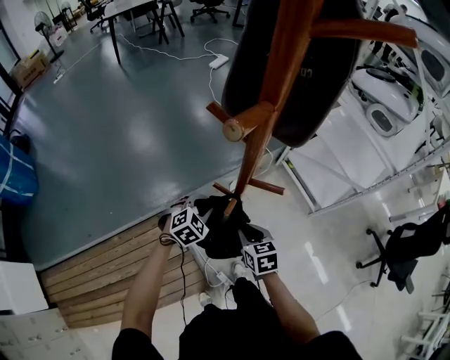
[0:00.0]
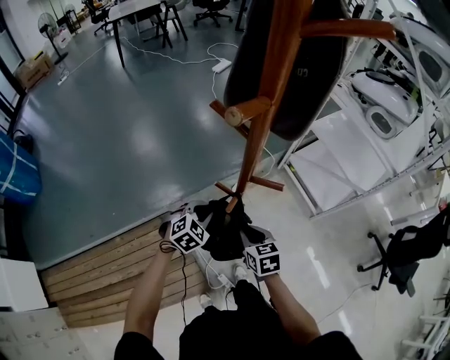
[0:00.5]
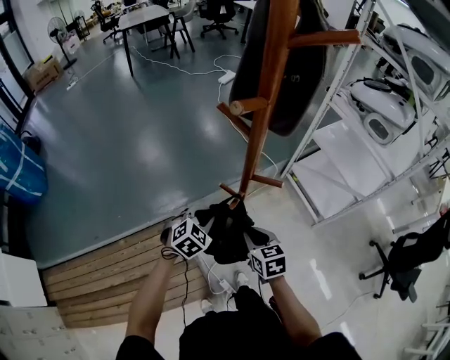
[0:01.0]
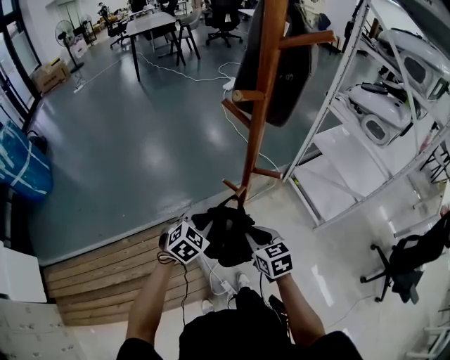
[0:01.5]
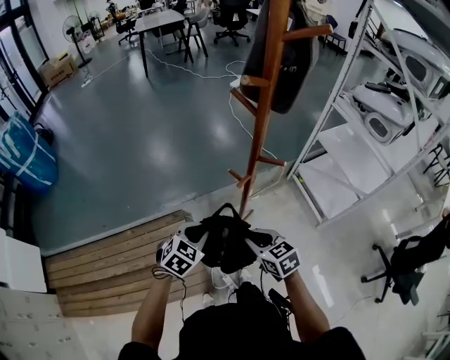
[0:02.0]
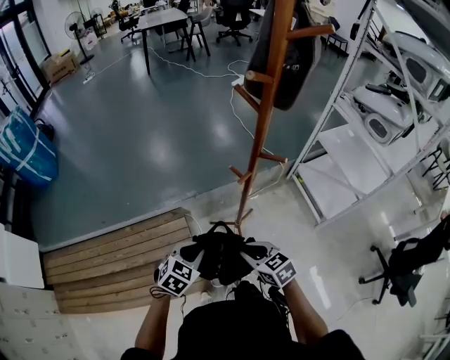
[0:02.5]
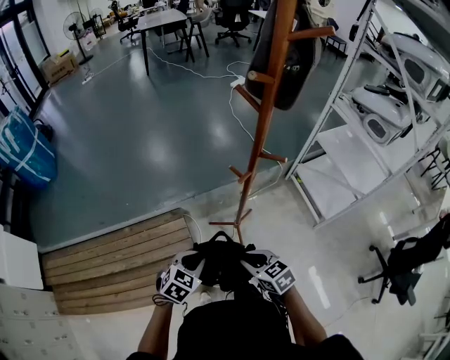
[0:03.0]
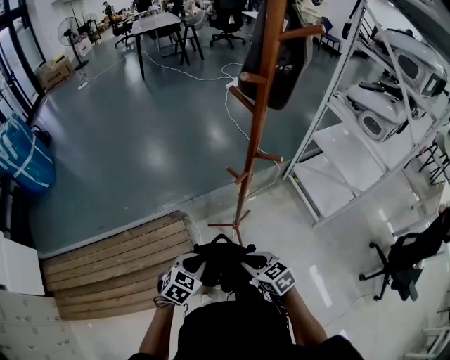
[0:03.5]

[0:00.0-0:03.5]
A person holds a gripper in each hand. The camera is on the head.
0:00.0 to 0:02.0: Both grippers travel together backward and upward, about 20 cm. The right gripper swivels about 30 degrees; the left gripper changes its angle by roughly 20 degrees.
0:02.0 to 0:03.5: Both grippers travel together backward, roughly 10 cm.

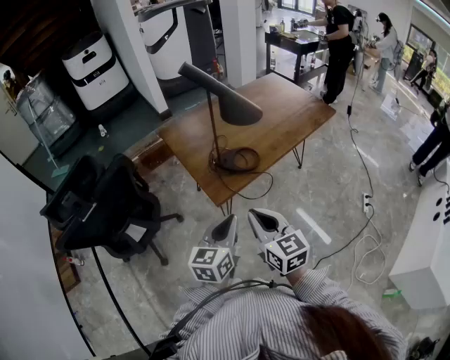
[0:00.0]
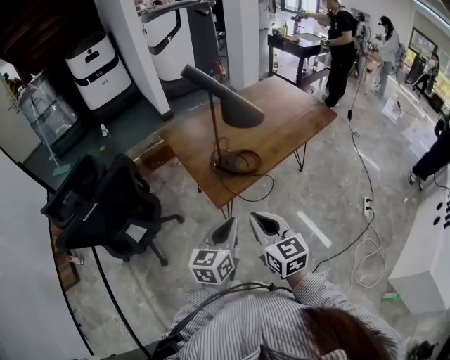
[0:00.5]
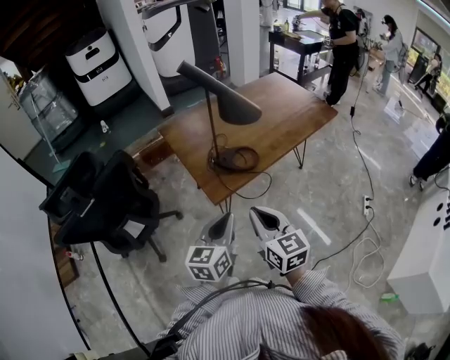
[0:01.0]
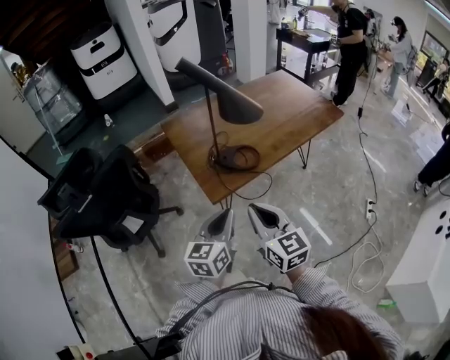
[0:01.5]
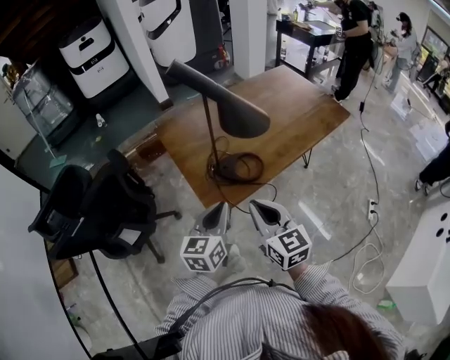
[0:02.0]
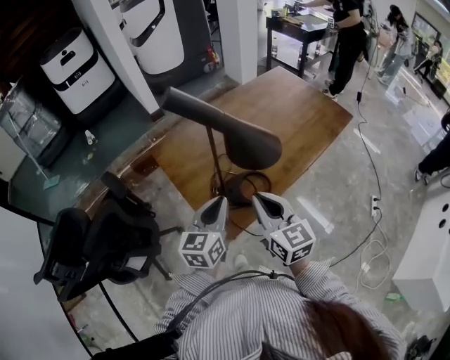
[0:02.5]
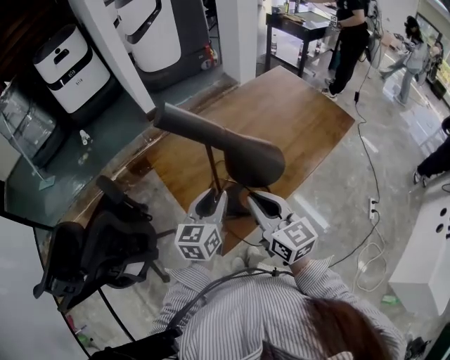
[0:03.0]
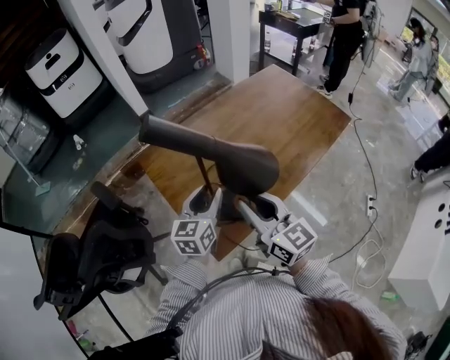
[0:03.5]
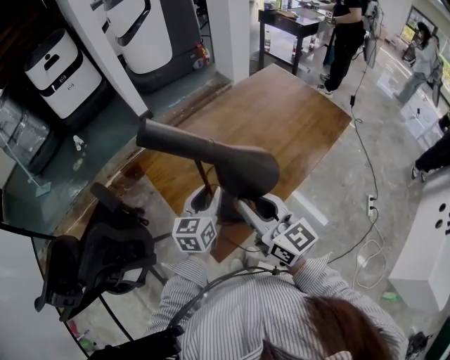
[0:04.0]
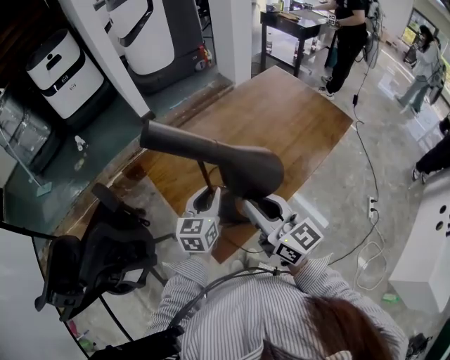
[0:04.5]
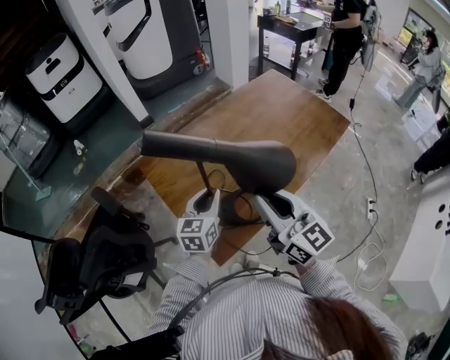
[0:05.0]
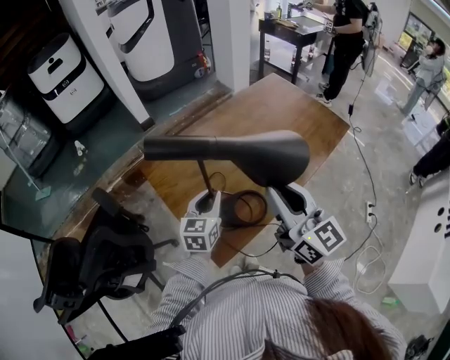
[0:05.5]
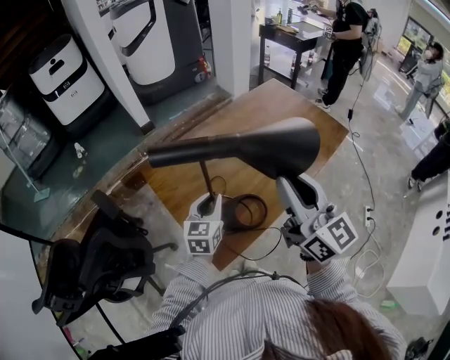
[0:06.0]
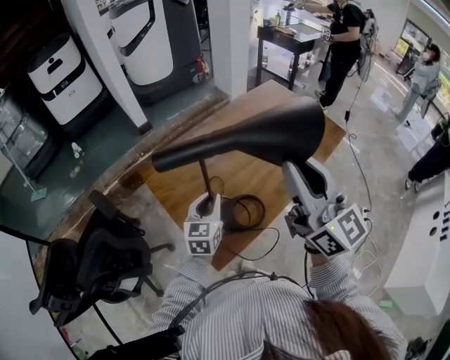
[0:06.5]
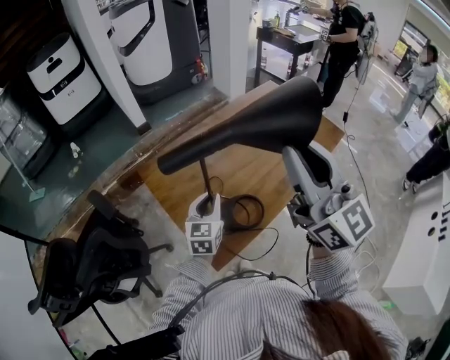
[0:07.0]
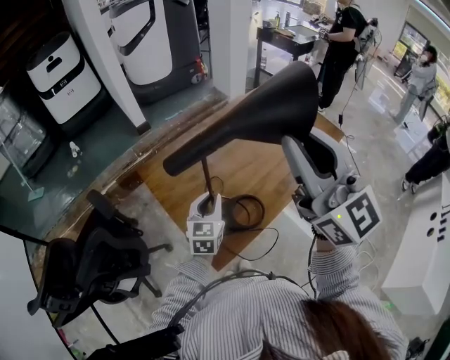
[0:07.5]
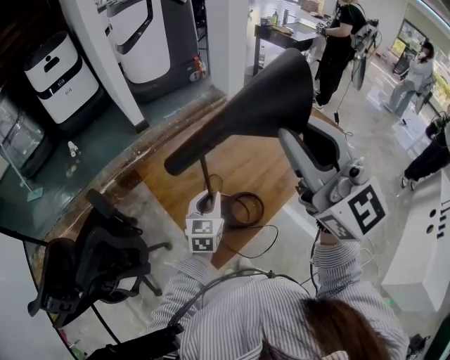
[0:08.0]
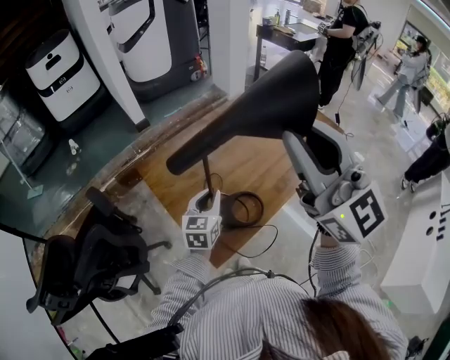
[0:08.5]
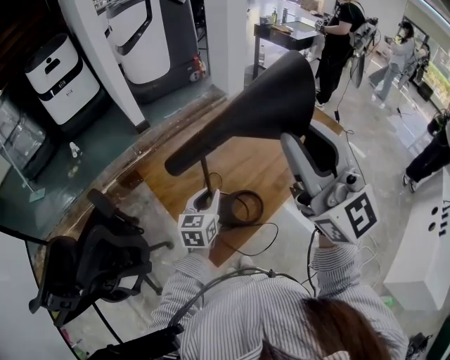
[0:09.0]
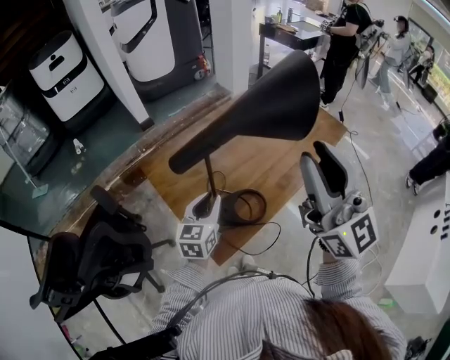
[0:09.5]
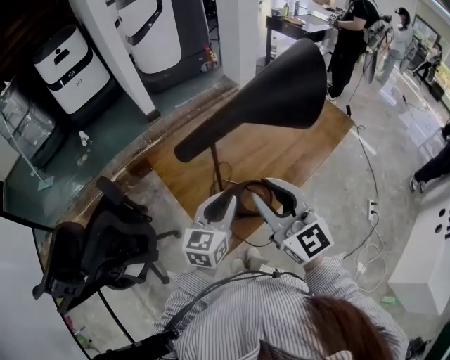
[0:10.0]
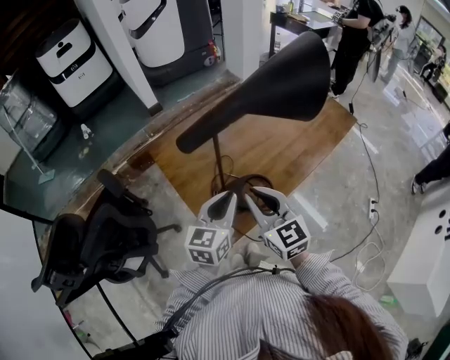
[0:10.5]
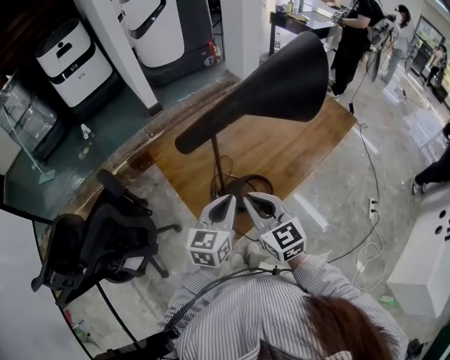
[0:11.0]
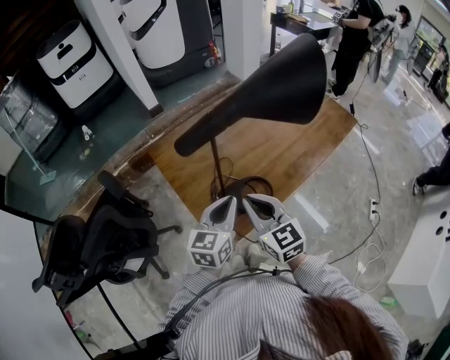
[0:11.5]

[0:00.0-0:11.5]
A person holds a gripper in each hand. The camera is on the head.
0:00.0 to 0:02.0: Both grippers move forward, roughly 10 cm.
0:02.0 to 0:04.0: The grippers both shift forward by some 20 cm. The left gripper opens its fingers.
0:04.0 to 0:06.0: The right gripper moves upward and to the right, some 15 cm.
0:06.0 to 0:07.5: The right gripper travels upward by approximately 10 cm, and rotates about 20 degrees.
0:07.5 to 0:09.5: The right gripper moves approximately 5 cm.
0:09.5 to 0:11.5: The right gripper moves downward and to the left, roughly 30 cm, points its fingers about 40 degrees further downward, and closes its fingers. Meanwhile the left gripper heads backward, covering roughly 5 cm, and closes.

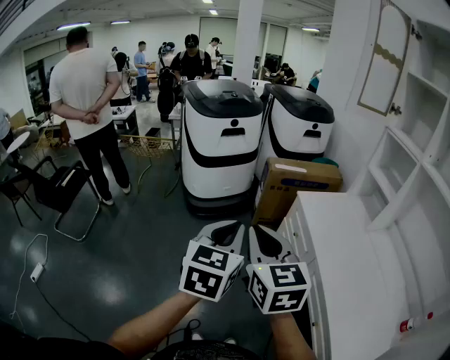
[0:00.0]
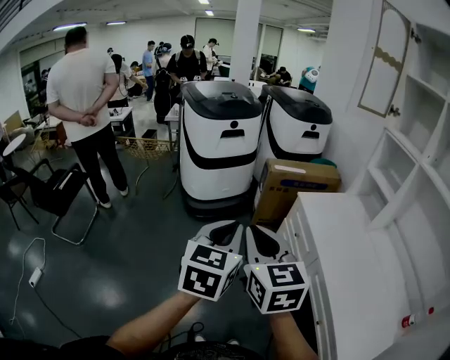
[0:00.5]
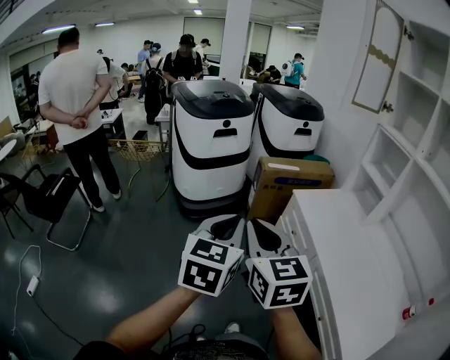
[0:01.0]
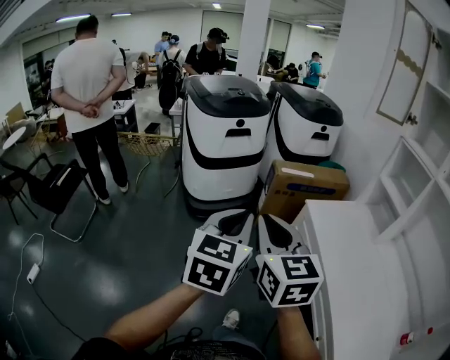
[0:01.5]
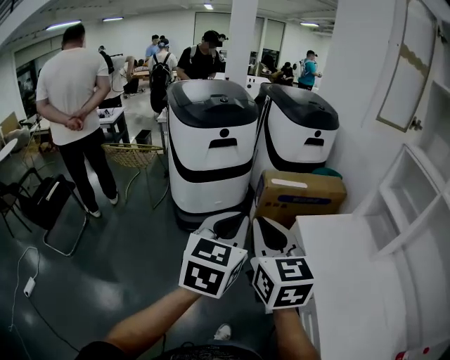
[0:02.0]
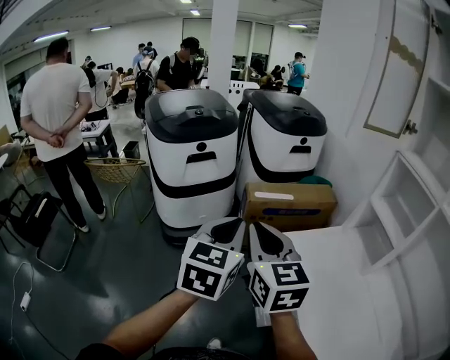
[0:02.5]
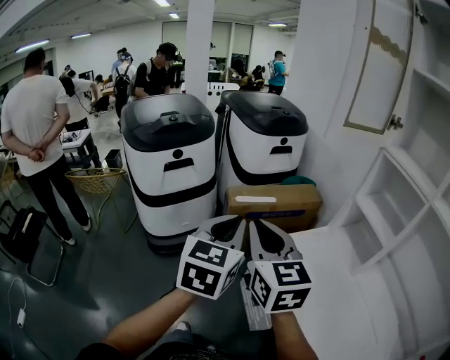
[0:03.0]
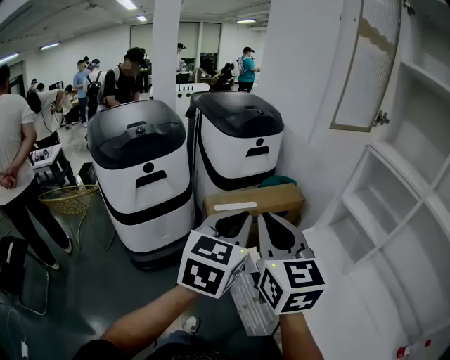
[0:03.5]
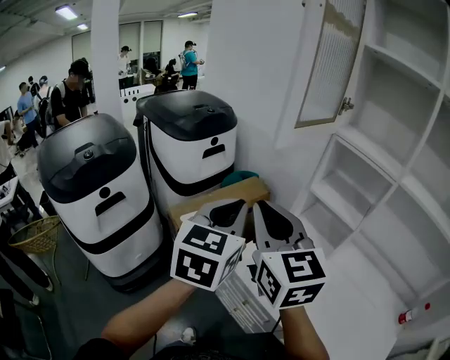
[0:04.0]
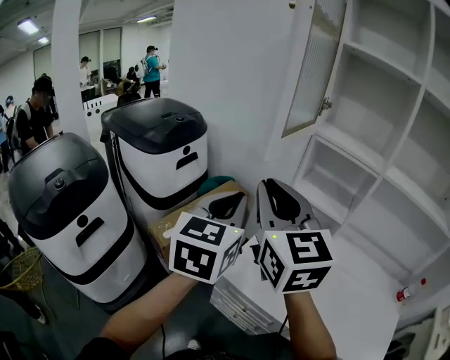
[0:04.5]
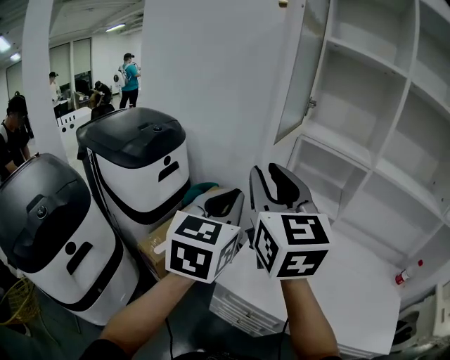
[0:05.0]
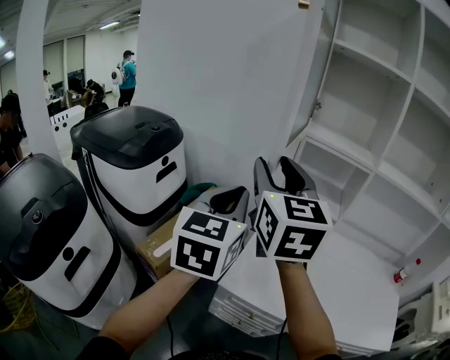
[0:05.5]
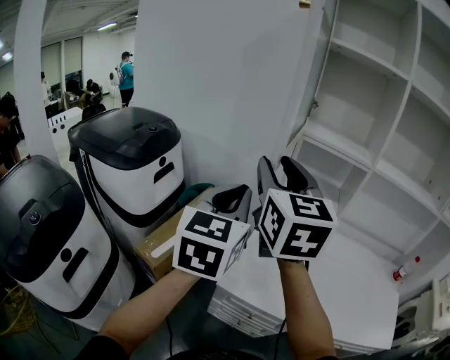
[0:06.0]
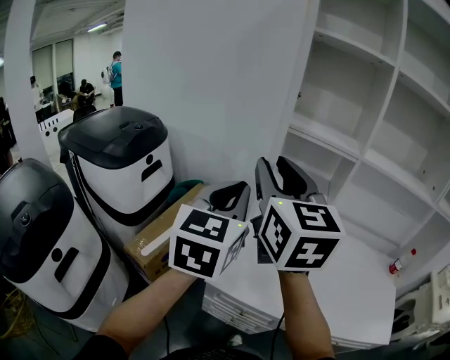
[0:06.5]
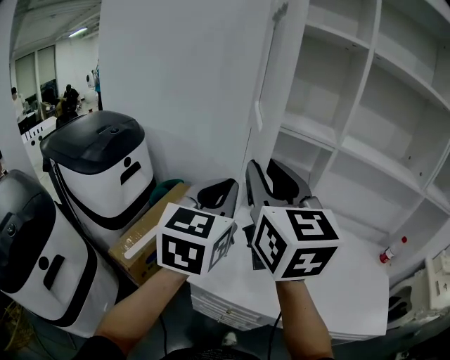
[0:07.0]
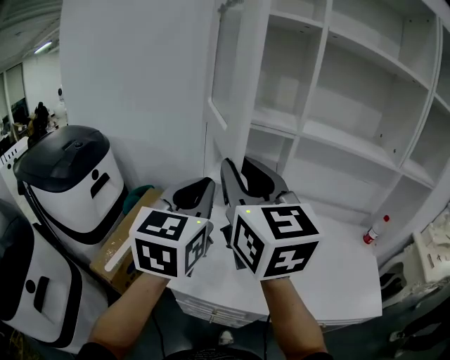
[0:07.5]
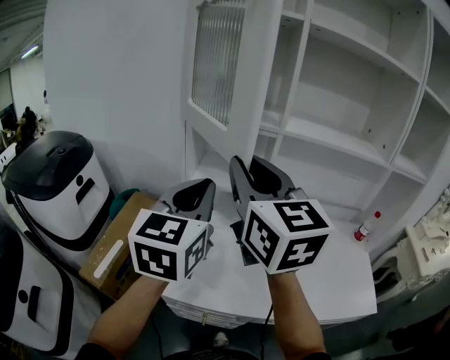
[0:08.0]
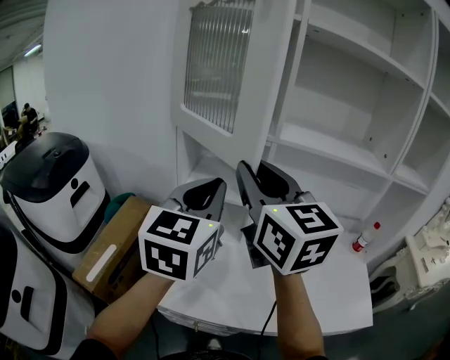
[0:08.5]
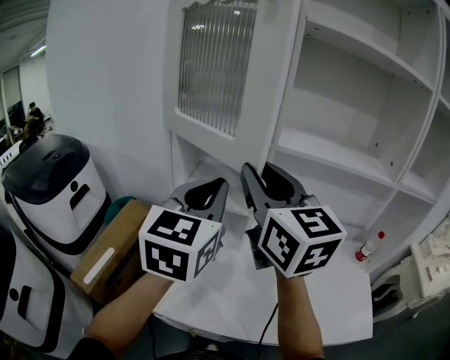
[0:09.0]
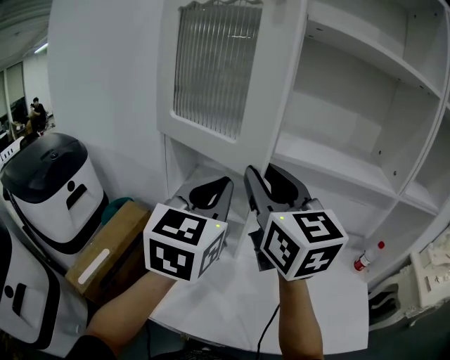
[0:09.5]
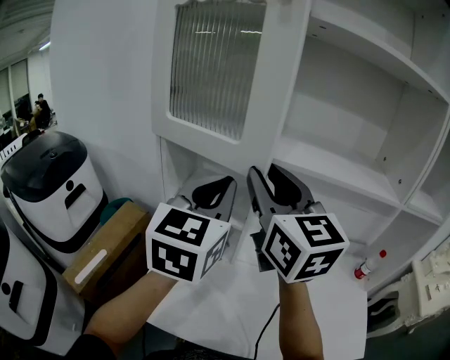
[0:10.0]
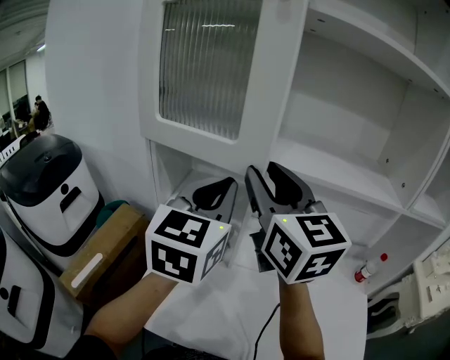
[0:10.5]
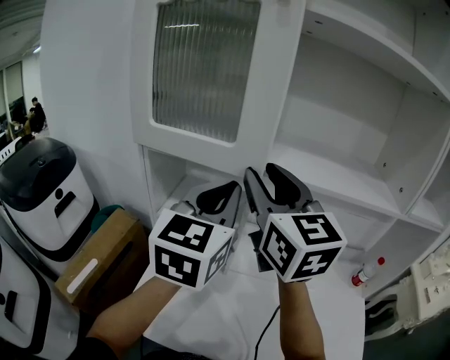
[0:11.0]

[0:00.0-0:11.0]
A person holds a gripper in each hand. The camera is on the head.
0:00.0 to 0:02.0: Both grippers travel together forward, some 20 cm.
0:02.0 to 0:03.5: Both grippers travel together forward and to the right, about 25 cm.
0:03.5 to 0:05.5: The left gripper changes place by some 20 cm, and turns by roughly 40 degrees. Meanwhile the right gripper changes place by approximately 25 cm, changes its angle by roughly 50 degrees, and opens its fingers.
0:05.5 to 0:07.5: The two grippers go some 15 cm to the right. The right gripper closes up.
0:07.5 to 0:09.0: Both grippers move to the right and forward, about 15 cm.
0:09.0 to 0:11.0: Both grippers travel together forward and to the right, some 10 cm.

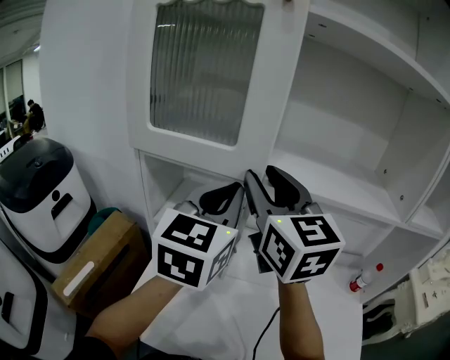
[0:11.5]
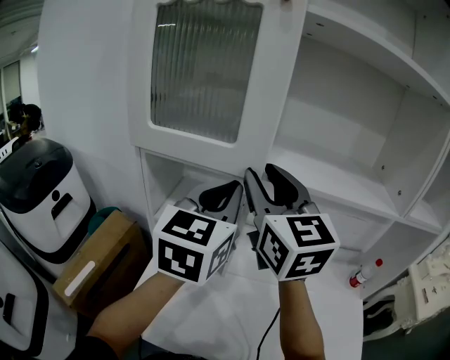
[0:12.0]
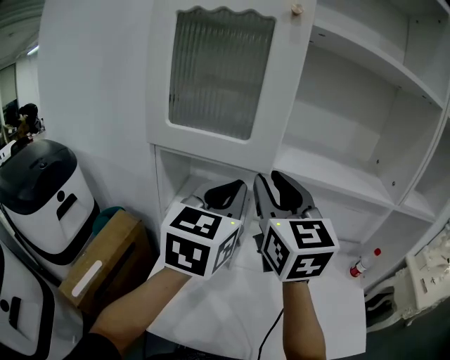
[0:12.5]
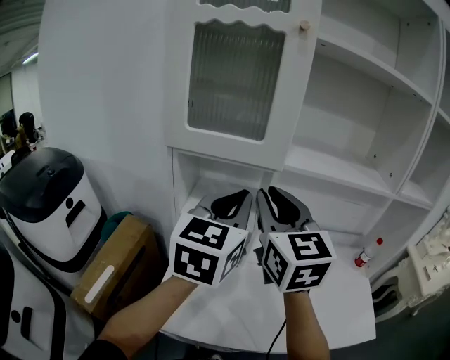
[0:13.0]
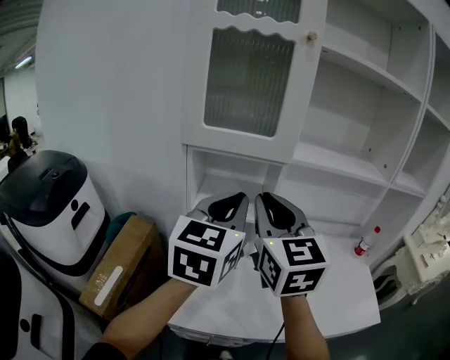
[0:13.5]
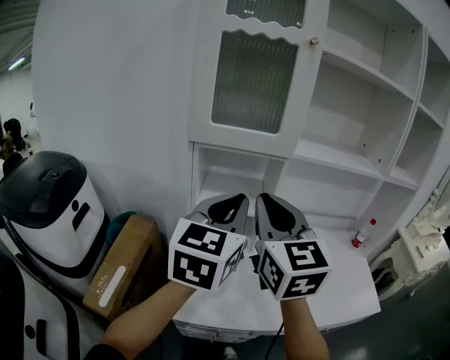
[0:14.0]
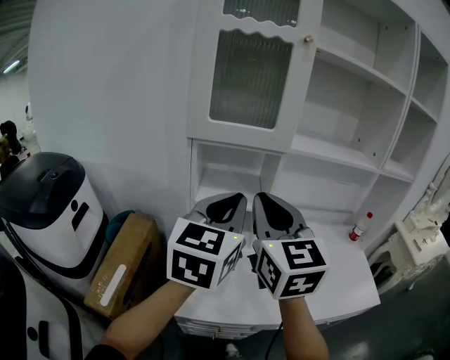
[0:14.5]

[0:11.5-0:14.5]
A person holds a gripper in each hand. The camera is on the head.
0:11.5 to 0:13.0: The grippers both shift backward by about 10 cm.
0:13.0 to 0:14.5: Both grippers move backward and to the left, about 10 cm.
